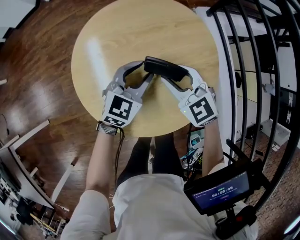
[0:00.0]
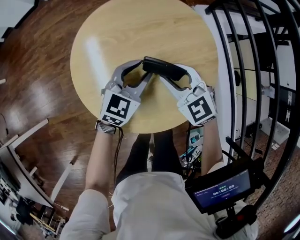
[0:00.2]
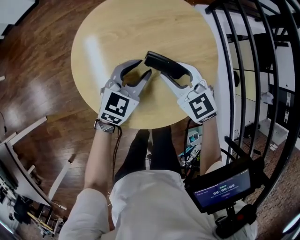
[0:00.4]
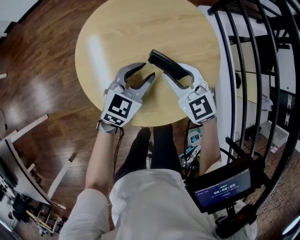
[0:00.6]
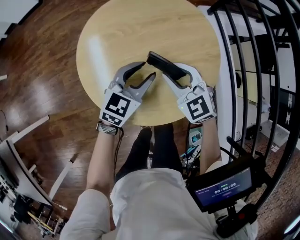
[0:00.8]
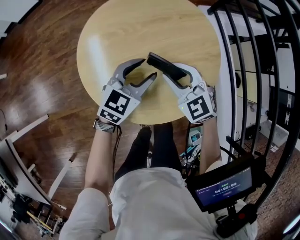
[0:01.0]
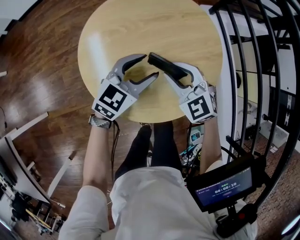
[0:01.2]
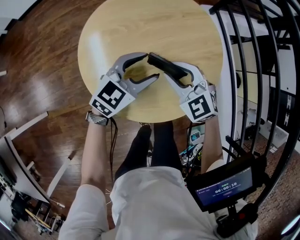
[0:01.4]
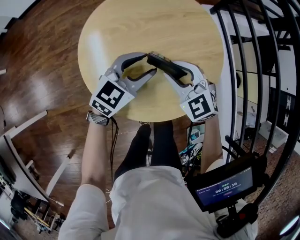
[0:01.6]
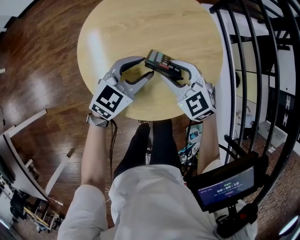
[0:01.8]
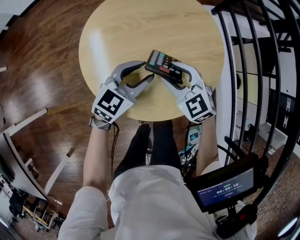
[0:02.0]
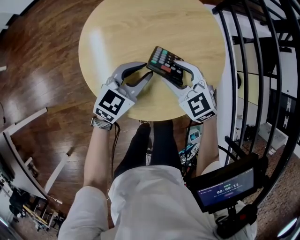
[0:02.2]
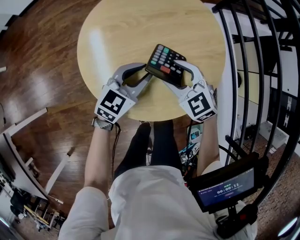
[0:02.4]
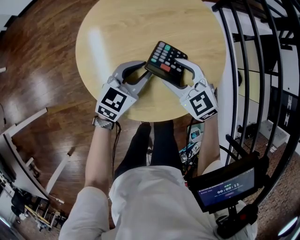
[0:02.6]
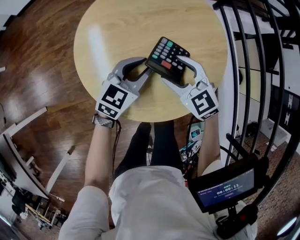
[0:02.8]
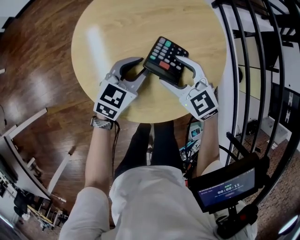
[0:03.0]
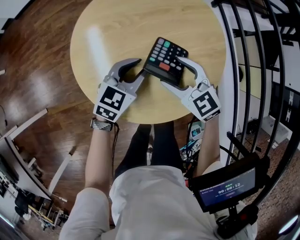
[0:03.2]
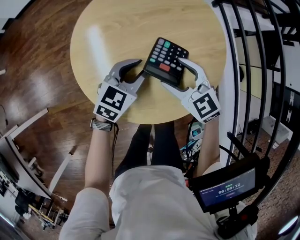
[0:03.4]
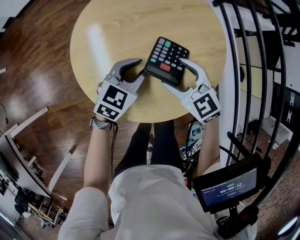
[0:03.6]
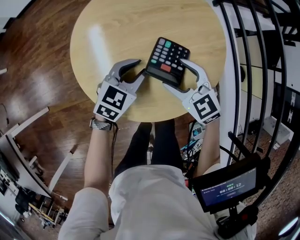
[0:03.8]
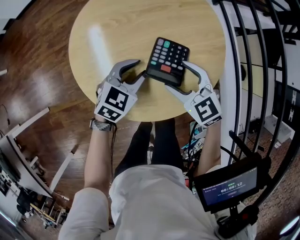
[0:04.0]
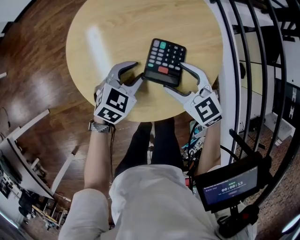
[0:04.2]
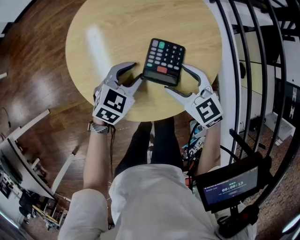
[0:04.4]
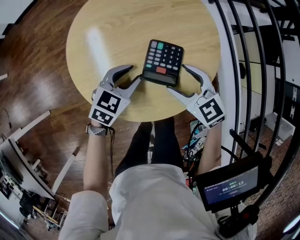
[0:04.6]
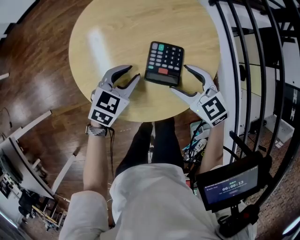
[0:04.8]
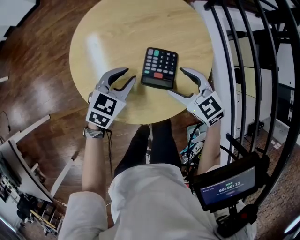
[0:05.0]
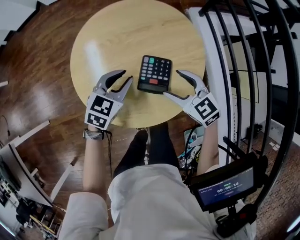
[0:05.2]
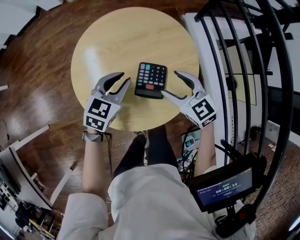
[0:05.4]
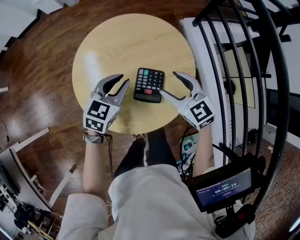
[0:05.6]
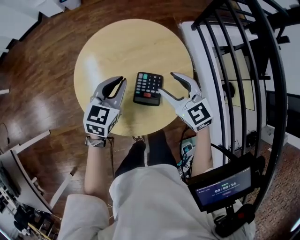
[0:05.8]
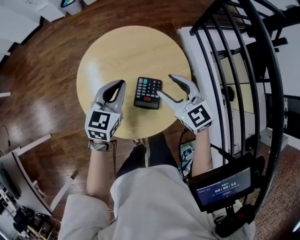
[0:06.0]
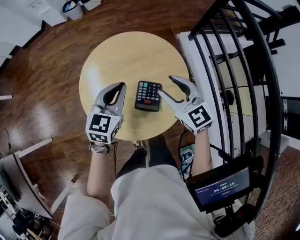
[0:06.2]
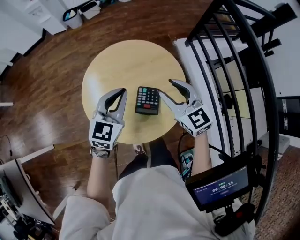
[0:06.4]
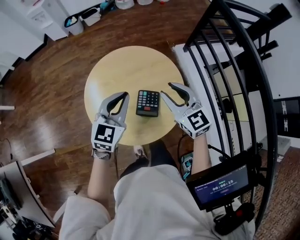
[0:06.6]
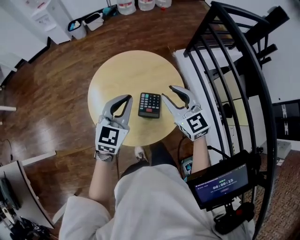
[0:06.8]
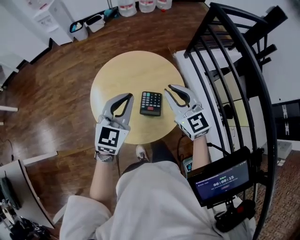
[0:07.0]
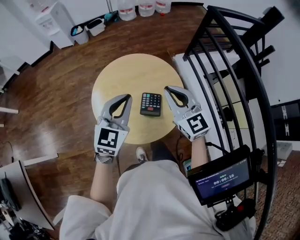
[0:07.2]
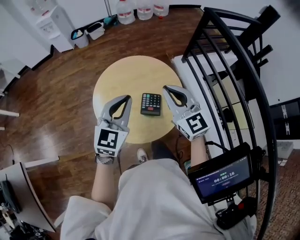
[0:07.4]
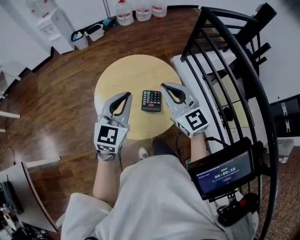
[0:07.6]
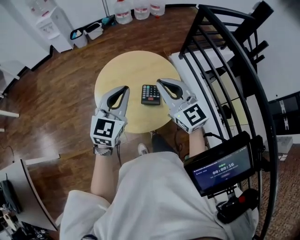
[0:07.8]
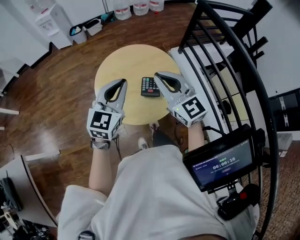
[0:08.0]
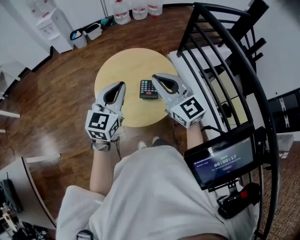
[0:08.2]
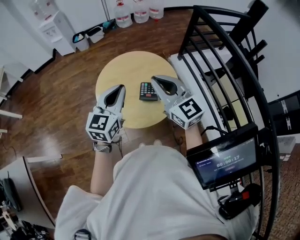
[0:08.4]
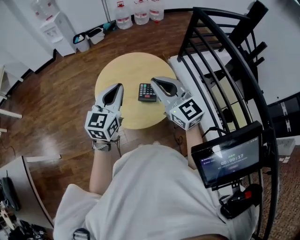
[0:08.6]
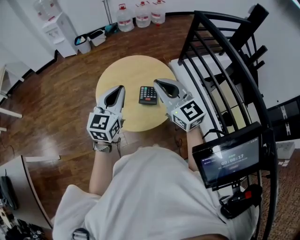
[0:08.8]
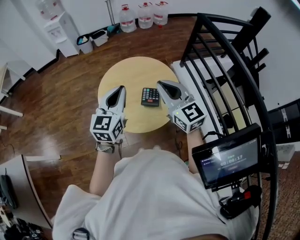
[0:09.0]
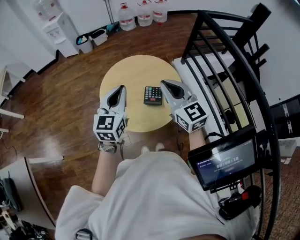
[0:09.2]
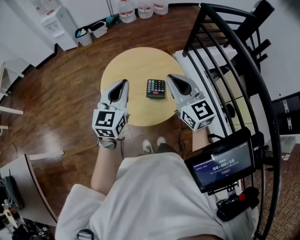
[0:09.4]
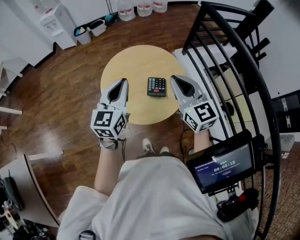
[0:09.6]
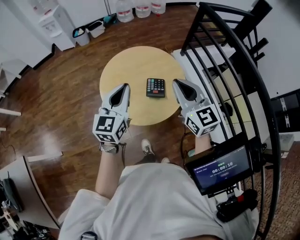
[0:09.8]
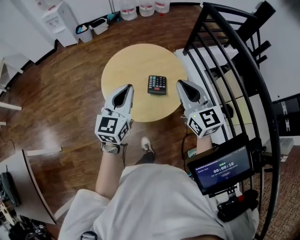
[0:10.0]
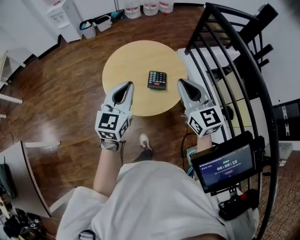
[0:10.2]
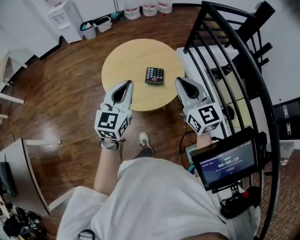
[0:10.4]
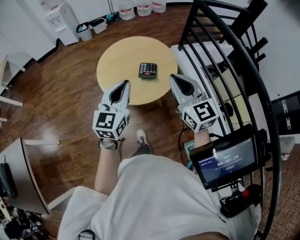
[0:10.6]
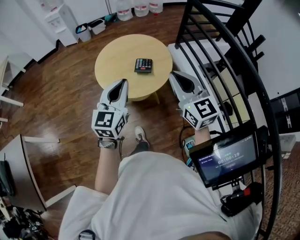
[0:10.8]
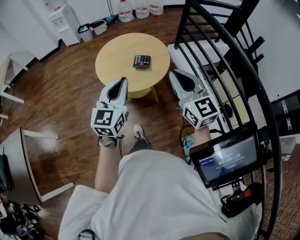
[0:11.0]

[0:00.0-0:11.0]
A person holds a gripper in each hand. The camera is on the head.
0:00.0 to 0:01.6: The grippers move only a little.
0:01.6 to 0:03.2: The right gripper opens. The left gripper goes roughly 5 cm downward.
0:03.2 to 0:04.8: The right gripper ends up some 5 cm from where it was.
0:04.8 to 0:06.2: Both grippers move upward and forward, some 15 cm. The left gripper rotates some 30 degrees, and closes up. Meanwhile the right gripper closes up.
0:06.2 to 0:07.8: The two grippers go about 15 cm upward and backward. The right gripper closes.
0:07.8 to 0:09.4: The grippers stay close to where they were, moving slightly.
0:09.4 to 0:11.0: Both grippers travel together backward, approximately 20 cm.

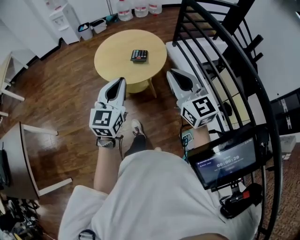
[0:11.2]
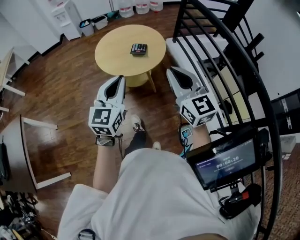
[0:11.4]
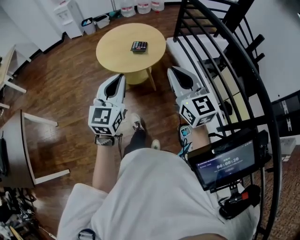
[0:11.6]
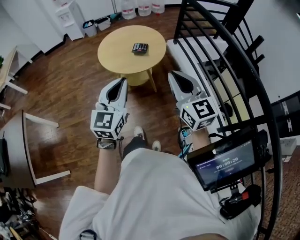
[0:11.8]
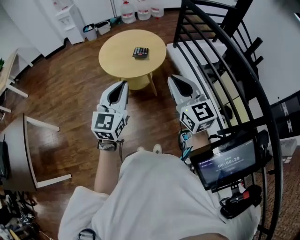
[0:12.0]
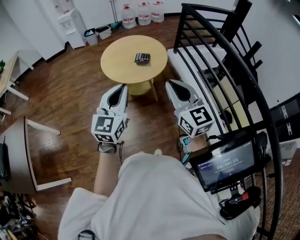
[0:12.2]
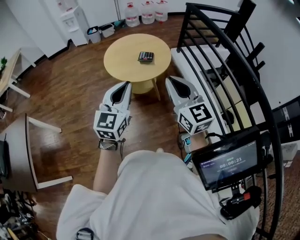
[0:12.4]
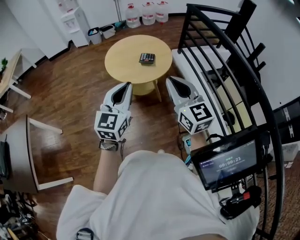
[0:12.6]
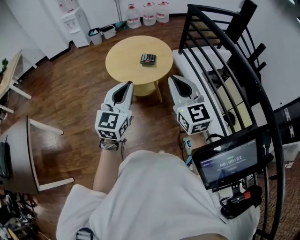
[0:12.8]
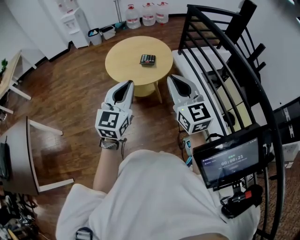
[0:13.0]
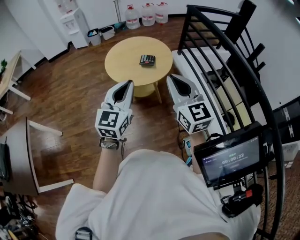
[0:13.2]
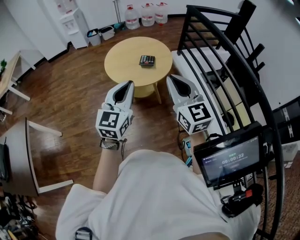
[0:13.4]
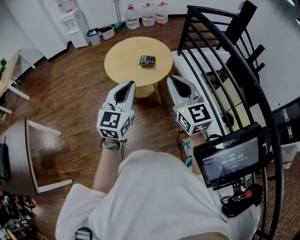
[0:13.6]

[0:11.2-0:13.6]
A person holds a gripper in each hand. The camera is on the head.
0:11.2 to 0:12.4: Both grippers travel together backward, roughly 5 cm.
0:12.4 to 0:13.6: There are only small adjustments of the grippers.

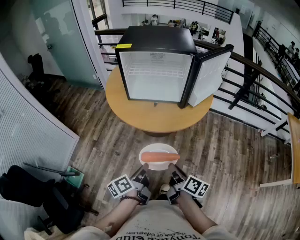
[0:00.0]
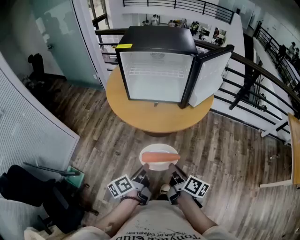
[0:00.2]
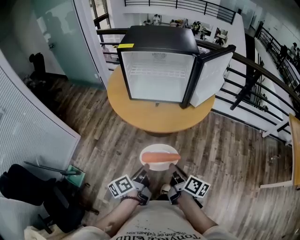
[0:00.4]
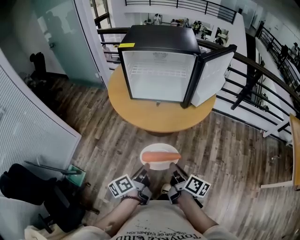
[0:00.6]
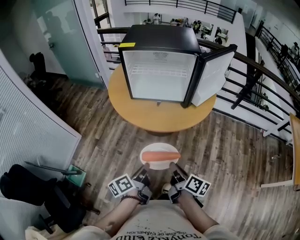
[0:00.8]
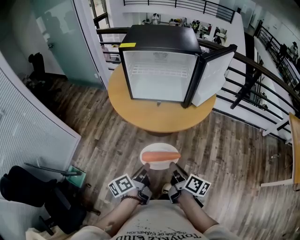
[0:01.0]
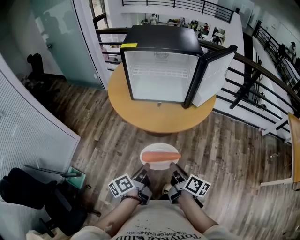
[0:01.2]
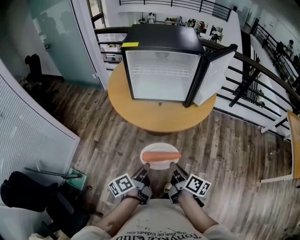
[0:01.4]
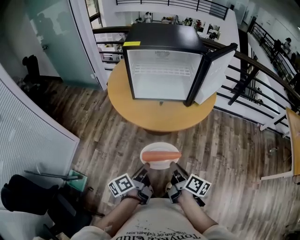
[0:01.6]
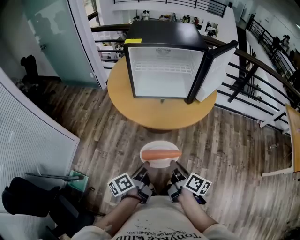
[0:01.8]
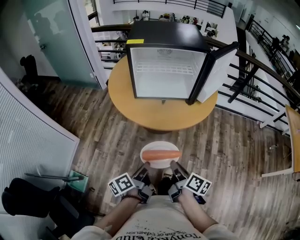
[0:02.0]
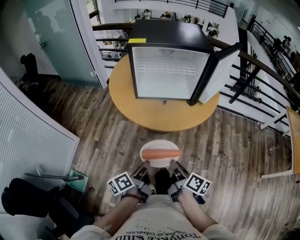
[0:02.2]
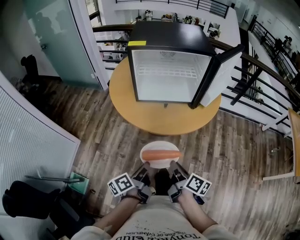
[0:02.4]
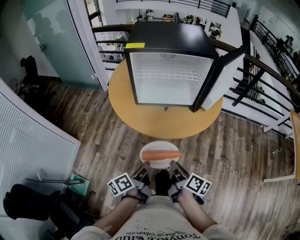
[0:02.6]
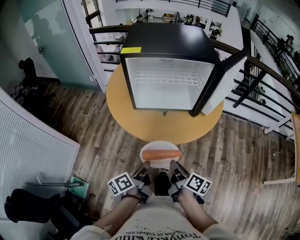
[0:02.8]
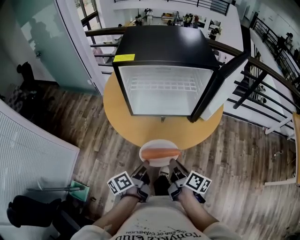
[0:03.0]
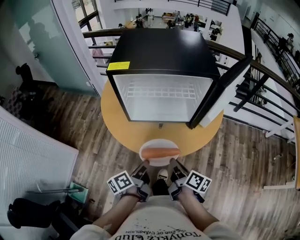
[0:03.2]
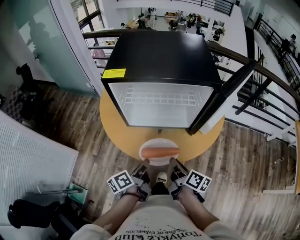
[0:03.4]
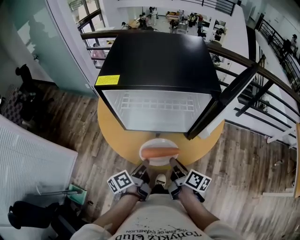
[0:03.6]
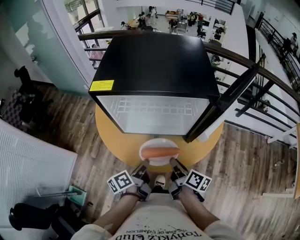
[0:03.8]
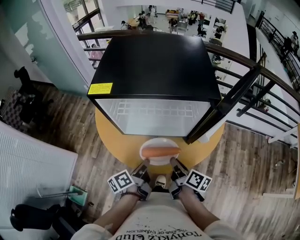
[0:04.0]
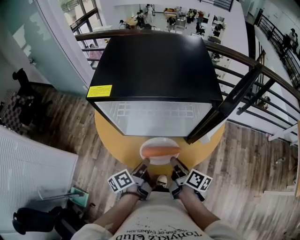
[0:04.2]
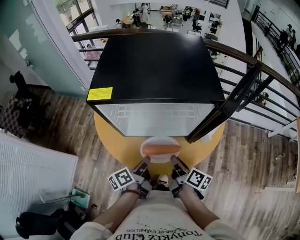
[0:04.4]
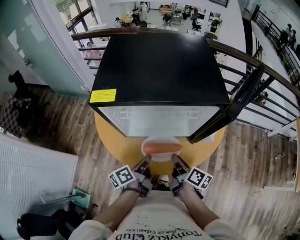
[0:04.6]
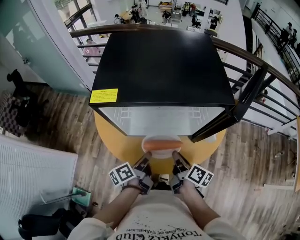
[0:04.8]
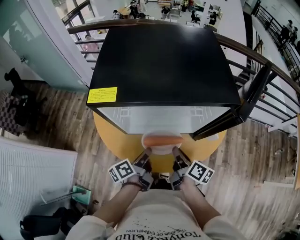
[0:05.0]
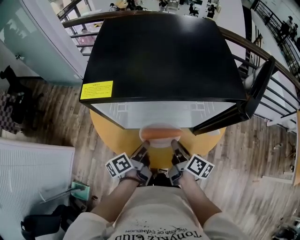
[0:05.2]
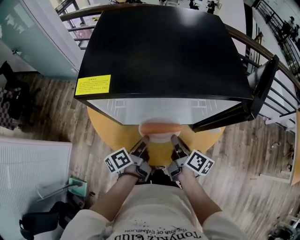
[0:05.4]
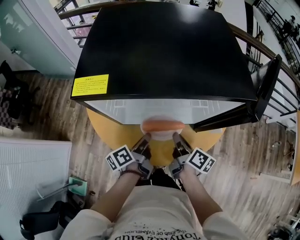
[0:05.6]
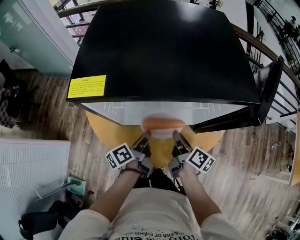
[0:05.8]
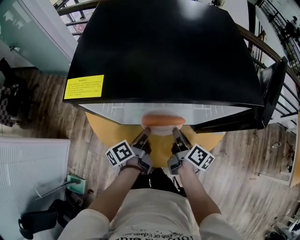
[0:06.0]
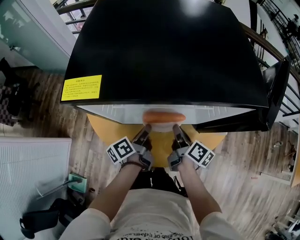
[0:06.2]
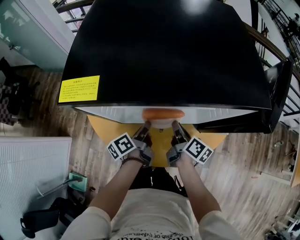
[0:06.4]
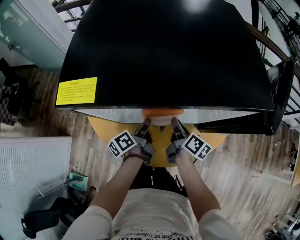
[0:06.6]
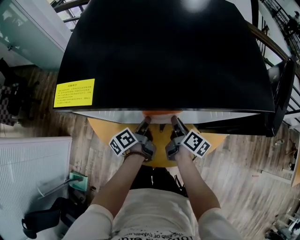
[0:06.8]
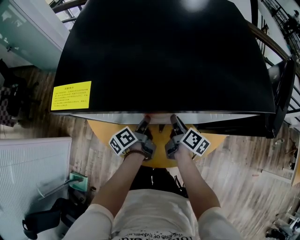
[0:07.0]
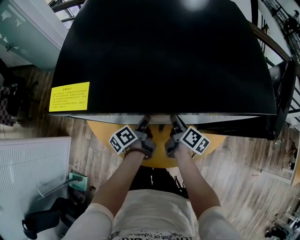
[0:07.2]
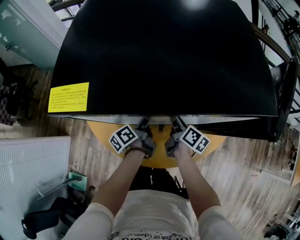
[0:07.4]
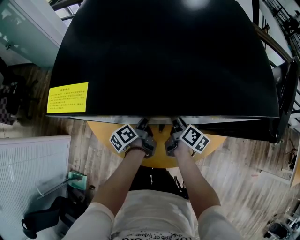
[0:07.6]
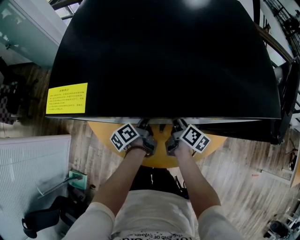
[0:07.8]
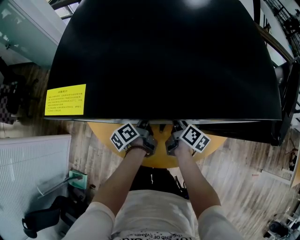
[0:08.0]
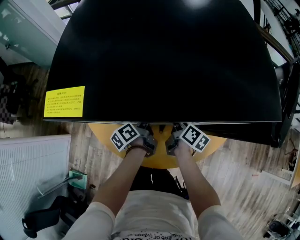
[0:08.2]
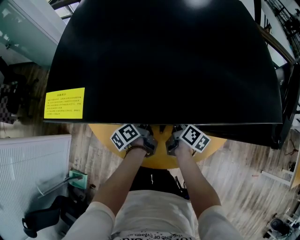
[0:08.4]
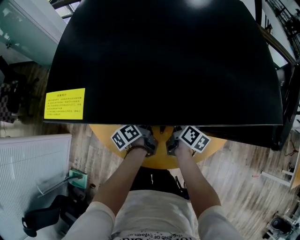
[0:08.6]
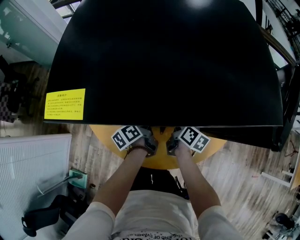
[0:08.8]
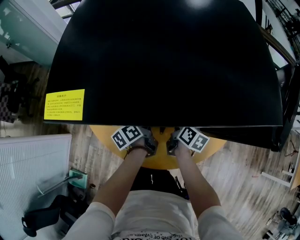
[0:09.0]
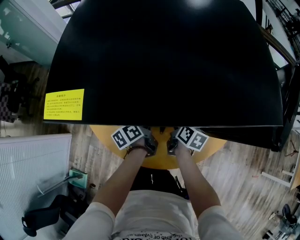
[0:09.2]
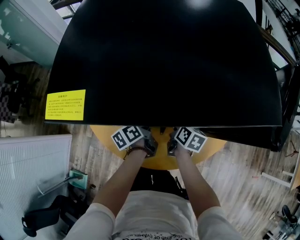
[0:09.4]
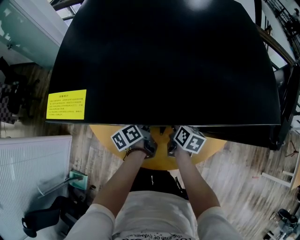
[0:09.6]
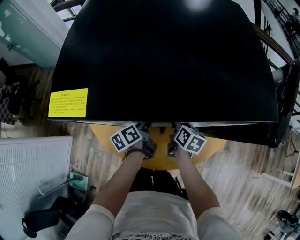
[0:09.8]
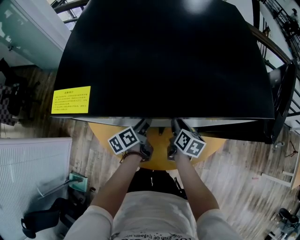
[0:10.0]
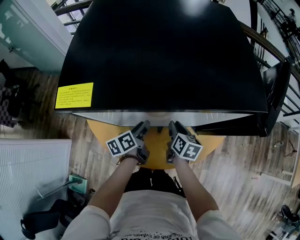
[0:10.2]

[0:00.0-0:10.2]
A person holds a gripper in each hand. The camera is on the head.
0:01.4 to 0:03.0: The right gripper changes place by roughly 20 cm.
0:03.0 to 0:04.4: The right gripper shifts by some 20 cm.
0:04.4 to 0:05.8: The right gripper moves roughly 10 cm.
0:05.8 to 0:07.2: The right gripper changes place by about 10 cm.
